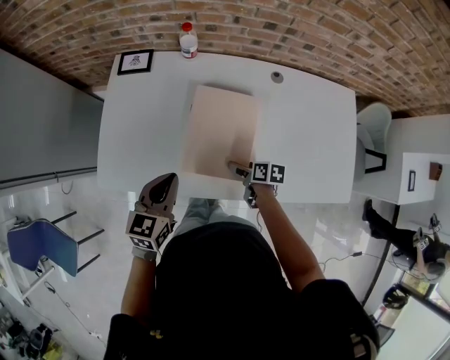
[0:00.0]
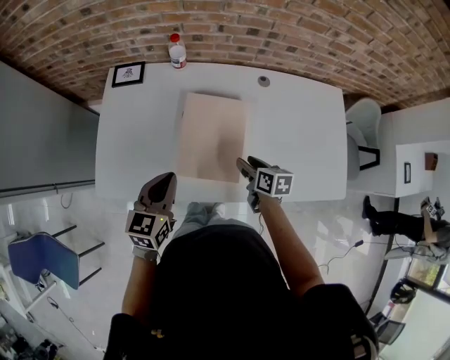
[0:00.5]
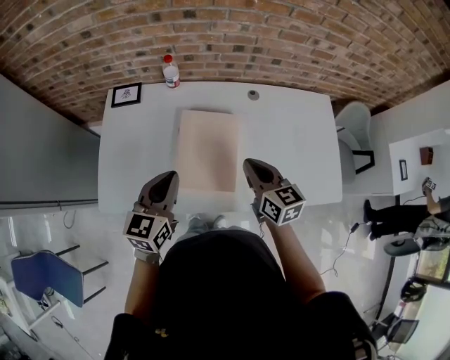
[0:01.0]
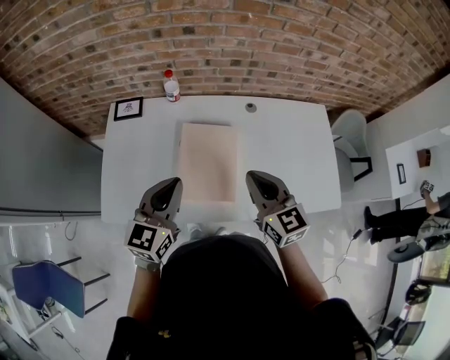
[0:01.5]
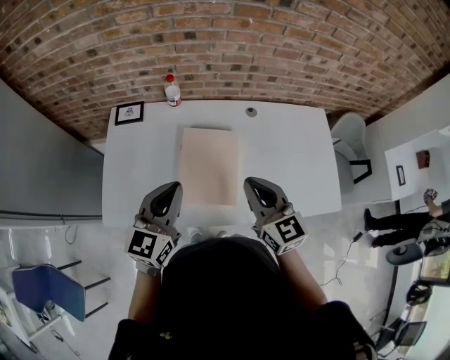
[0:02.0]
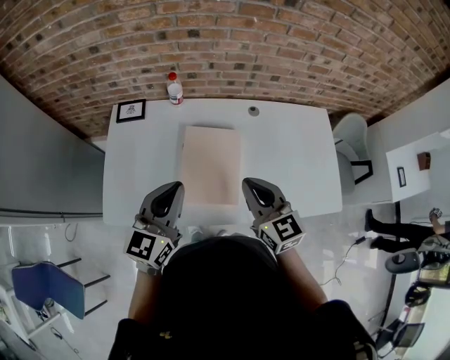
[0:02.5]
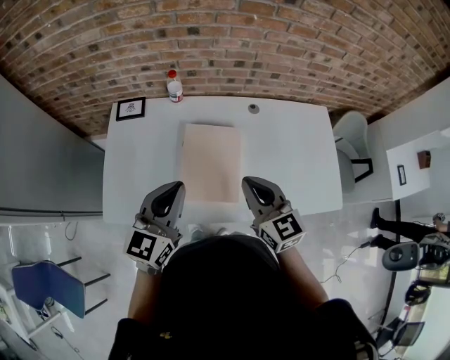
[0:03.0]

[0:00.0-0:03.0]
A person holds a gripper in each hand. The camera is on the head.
0:00.0 to 0:01.5: The right gripper heads upward, covering approximately 35 cm, tilts its fingers some 40 degrees upward, and closes up. The left gripper moves upward, roughly 15 cm.
0:01.5 to 0:03.0: The grippers move only a little.

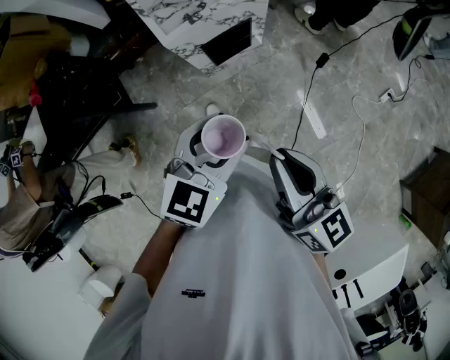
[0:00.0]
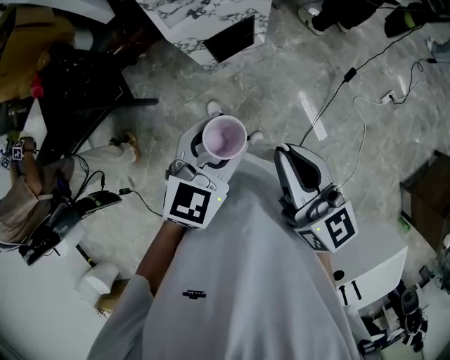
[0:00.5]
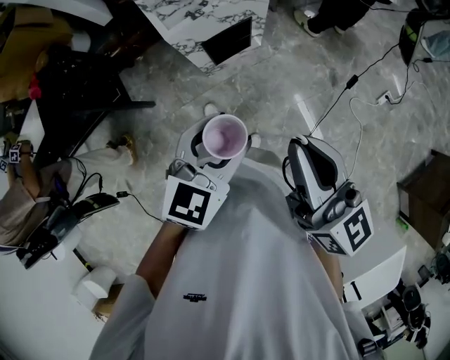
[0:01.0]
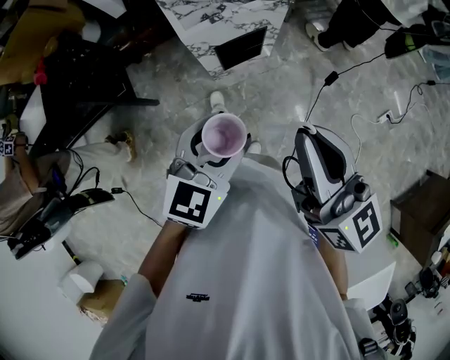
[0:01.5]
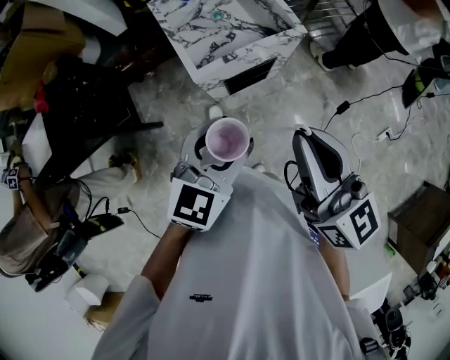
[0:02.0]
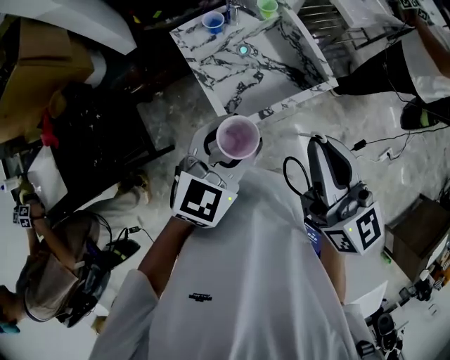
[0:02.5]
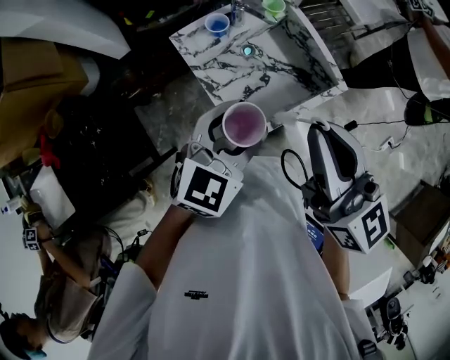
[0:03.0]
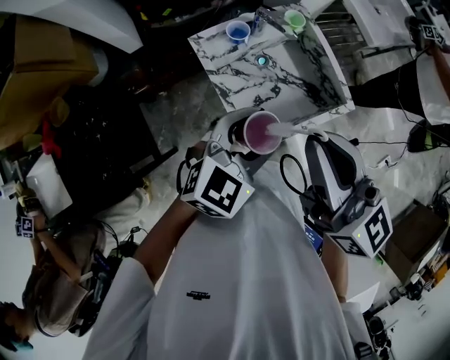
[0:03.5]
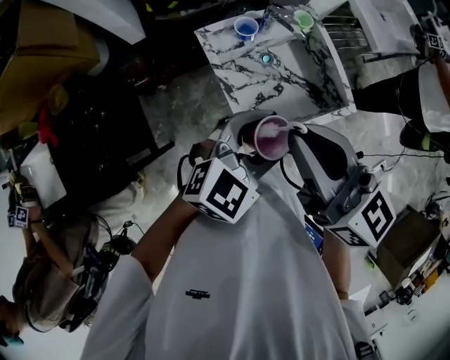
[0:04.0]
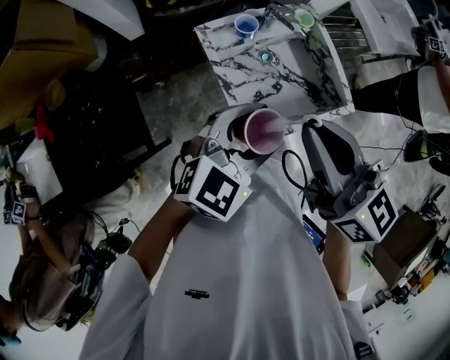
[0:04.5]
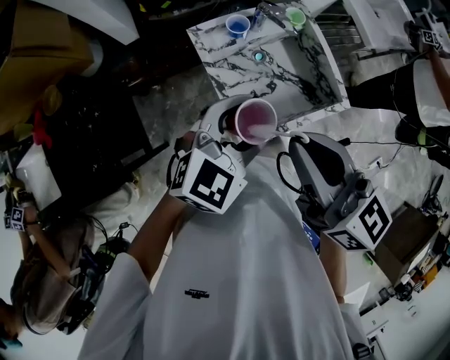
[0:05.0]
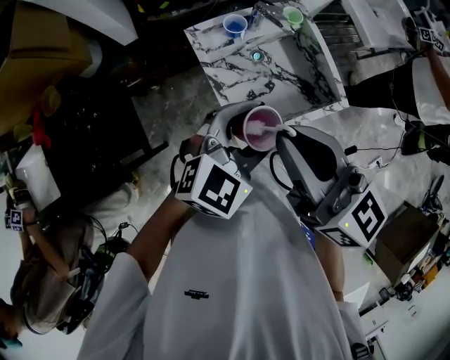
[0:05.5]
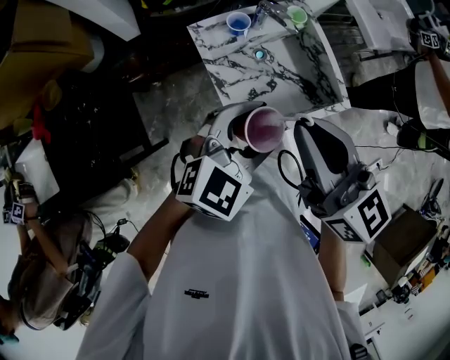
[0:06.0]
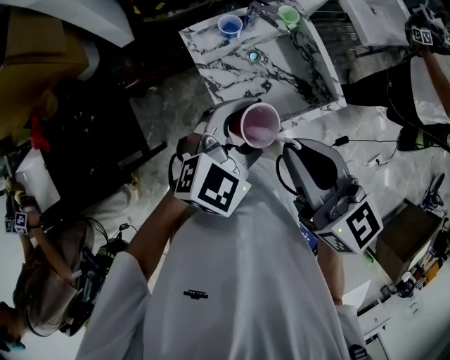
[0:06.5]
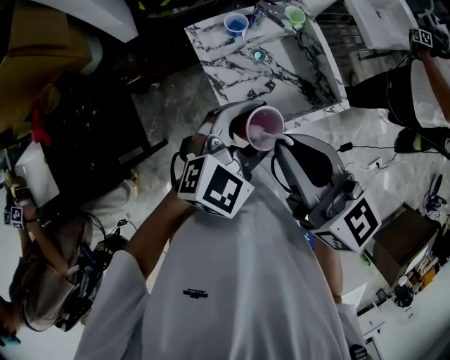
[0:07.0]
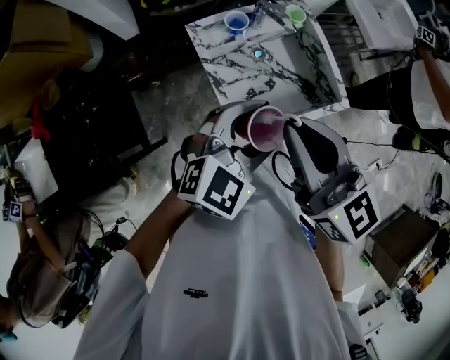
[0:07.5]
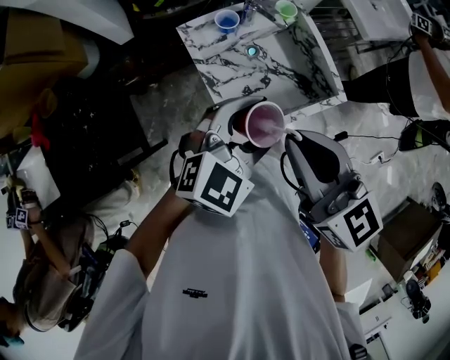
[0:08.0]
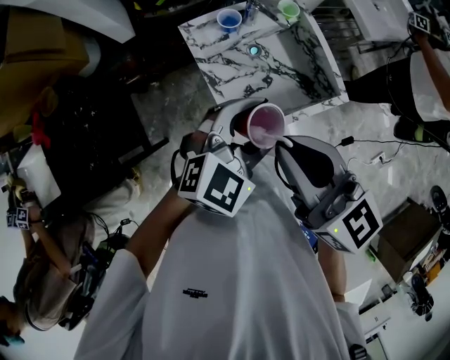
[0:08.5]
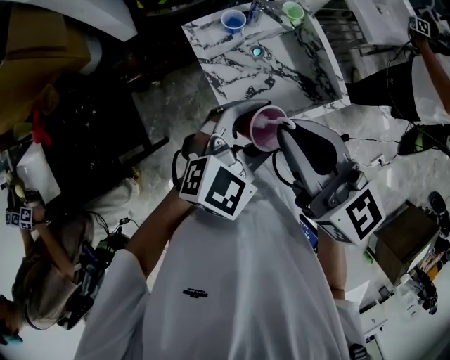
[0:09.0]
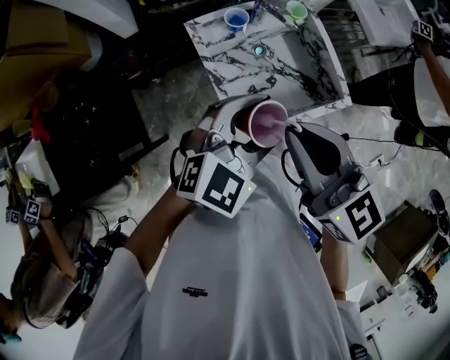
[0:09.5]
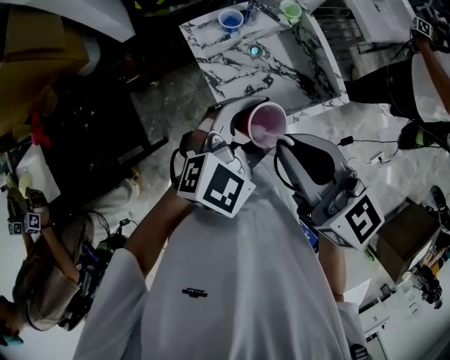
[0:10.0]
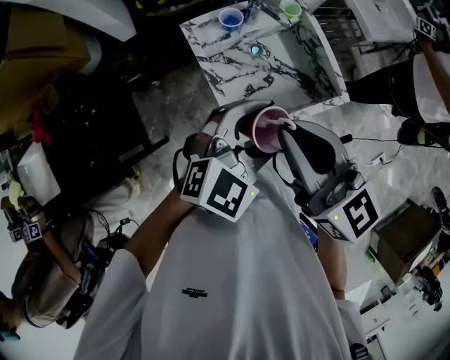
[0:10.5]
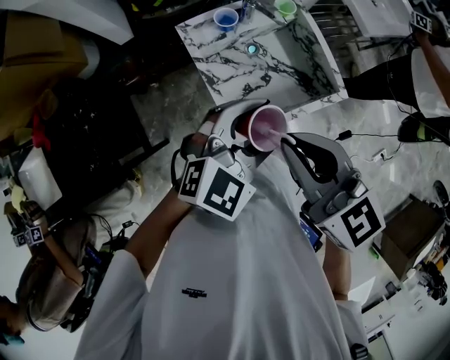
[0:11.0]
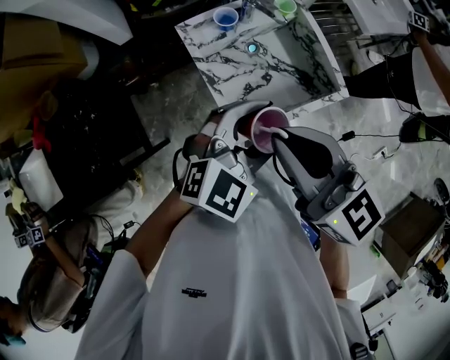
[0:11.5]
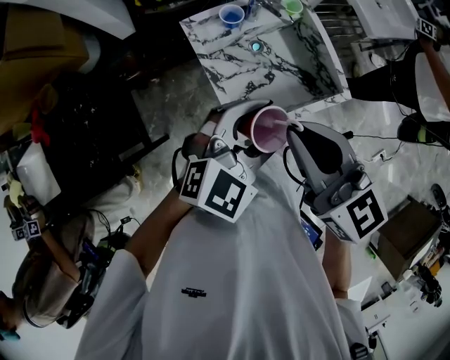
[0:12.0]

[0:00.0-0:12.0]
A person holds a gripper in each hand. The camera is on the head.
0:00.0 to 0:02.0: Both grippers travel together forward and to the left, about 20 cm.
0:02.0 to 0:04.0: The right gripper is displaced to the left and forward by some 35 cm, while the left gripper moves forward and to the left, some 30 cm.
0:04.0 to 0:06.0: The grippers make only small movements.
0:06.0 to 0:12.0: The grippers move only a little.

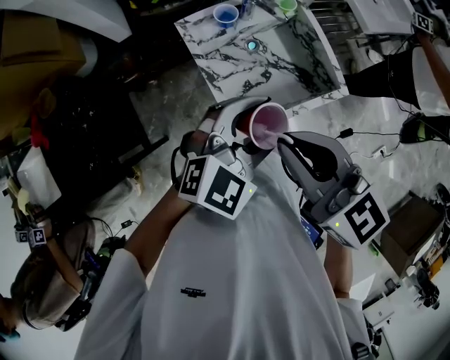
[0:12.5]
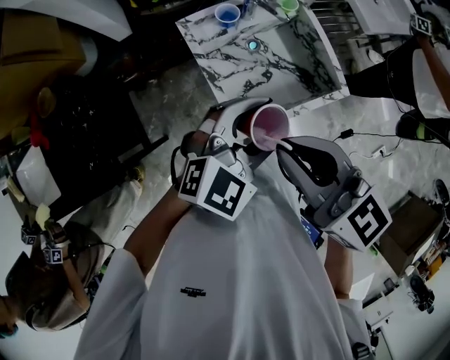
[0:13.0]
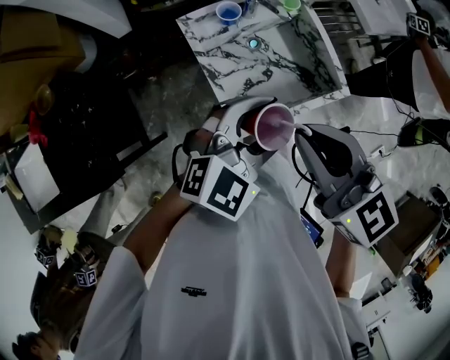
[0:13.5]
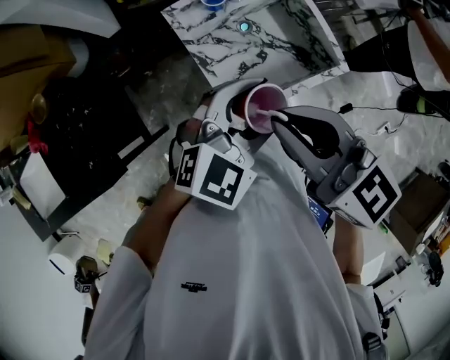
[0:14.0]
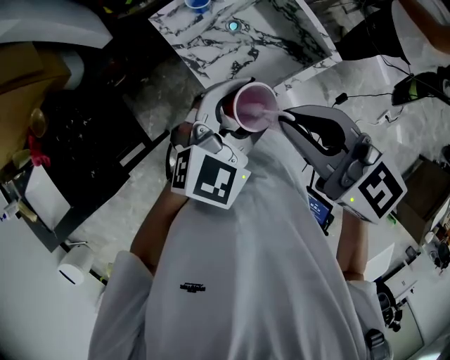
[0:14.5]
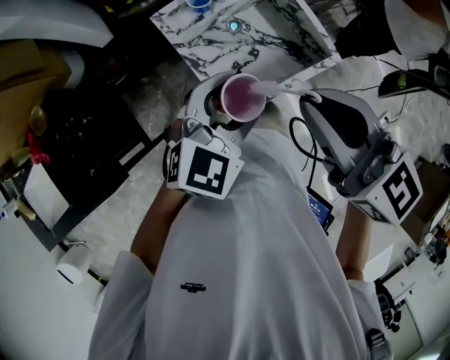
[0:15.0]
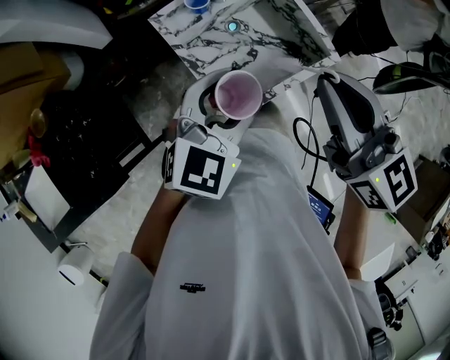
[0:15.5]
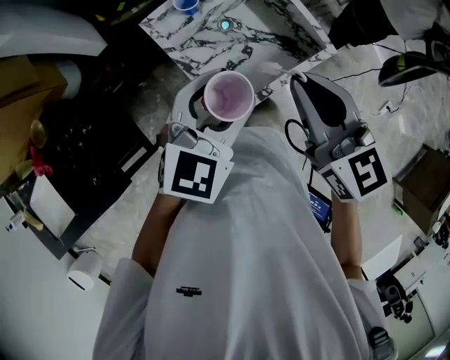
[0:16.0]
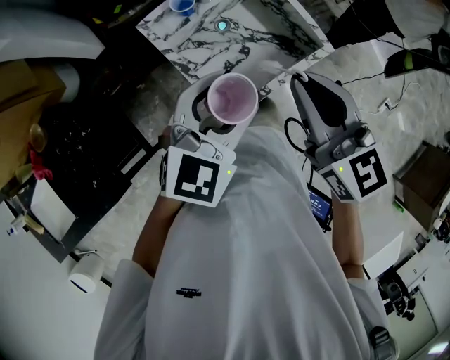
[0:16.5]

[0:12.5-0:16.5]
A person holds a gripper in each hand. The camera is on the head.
0:12.5 to 0:14.5: The grippers make only small movements.
0:14.5 to 0:16.5: The right gripper travels to the right and forward by some 10 cm, and rotates roughly 30 degrees.

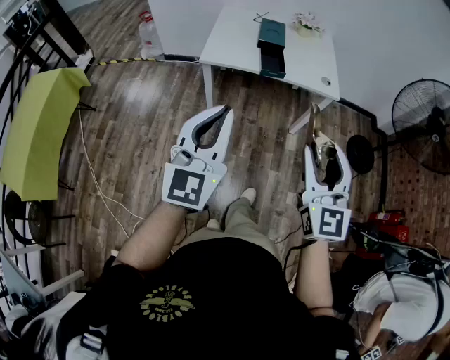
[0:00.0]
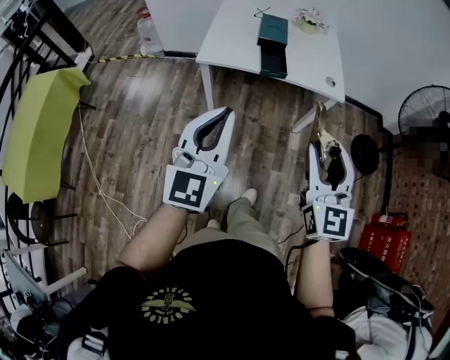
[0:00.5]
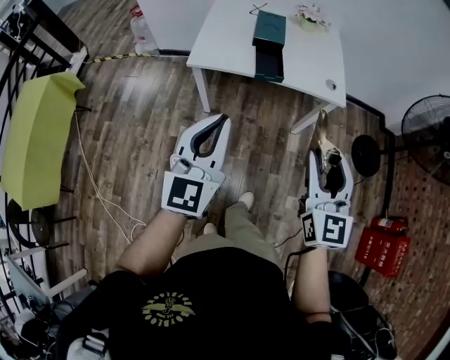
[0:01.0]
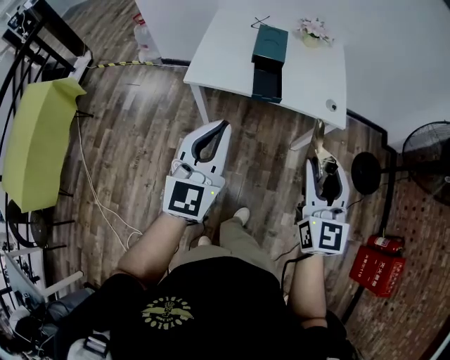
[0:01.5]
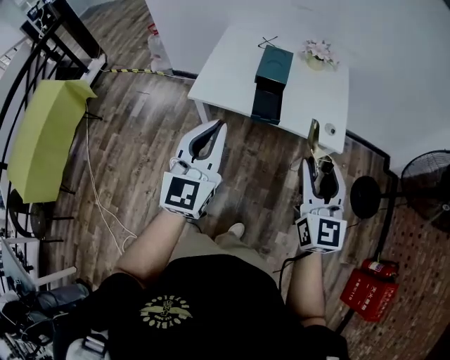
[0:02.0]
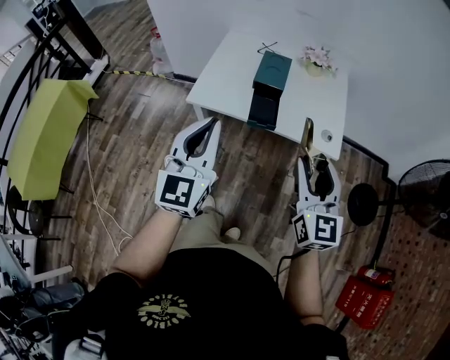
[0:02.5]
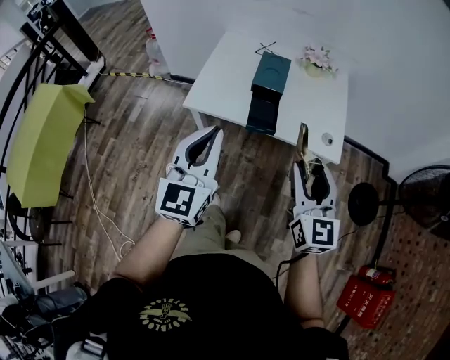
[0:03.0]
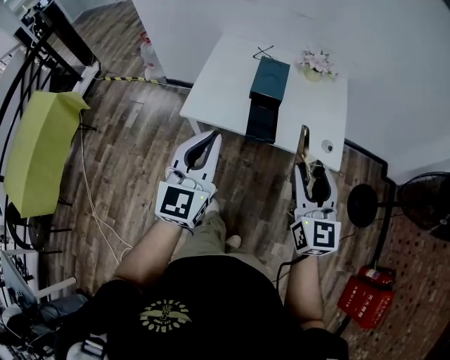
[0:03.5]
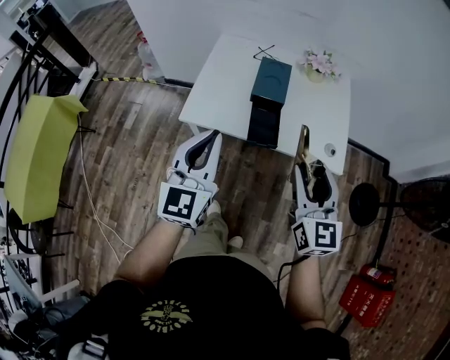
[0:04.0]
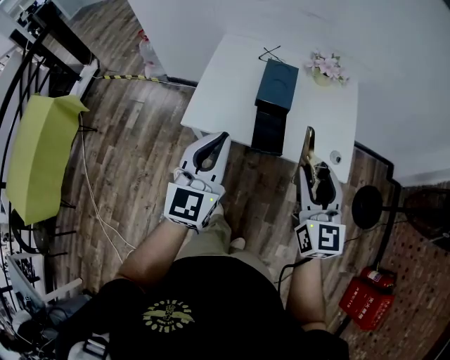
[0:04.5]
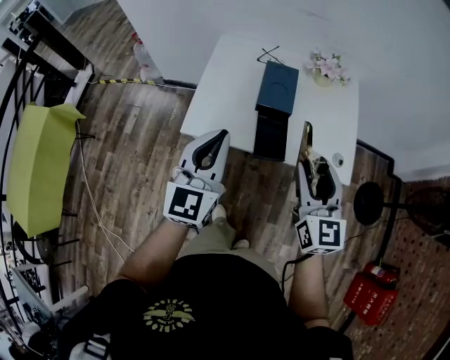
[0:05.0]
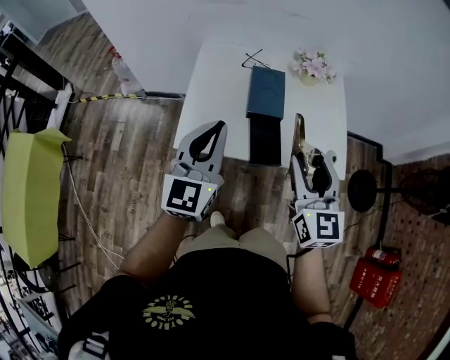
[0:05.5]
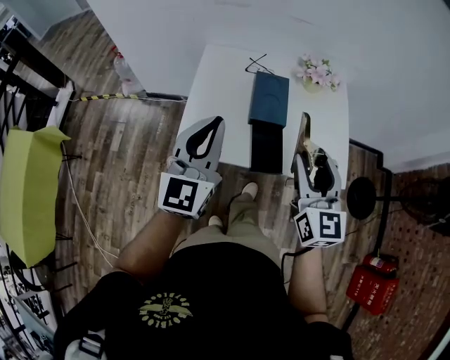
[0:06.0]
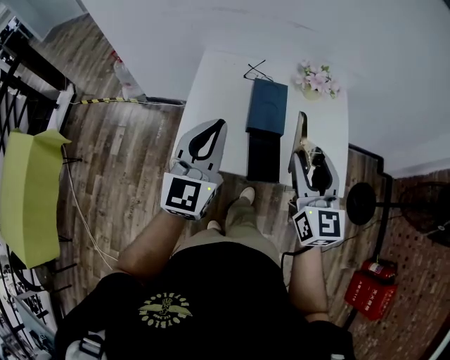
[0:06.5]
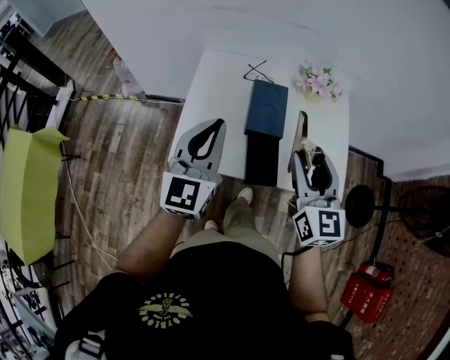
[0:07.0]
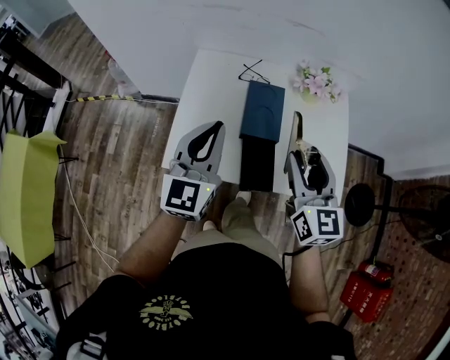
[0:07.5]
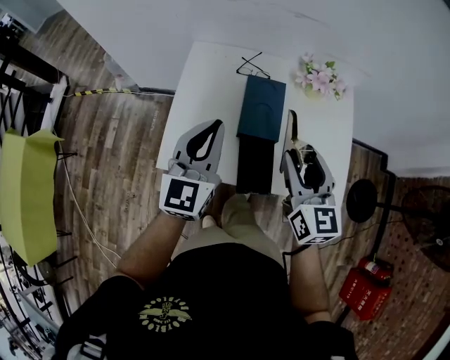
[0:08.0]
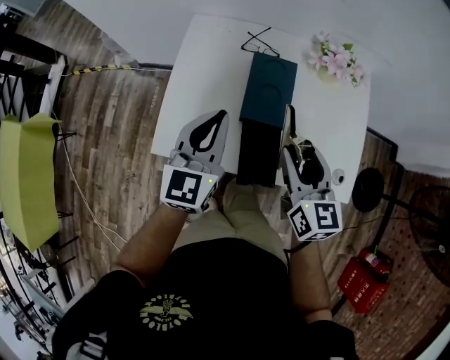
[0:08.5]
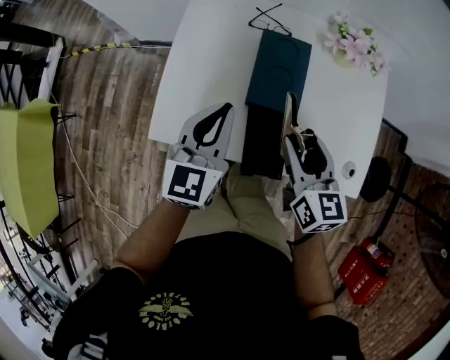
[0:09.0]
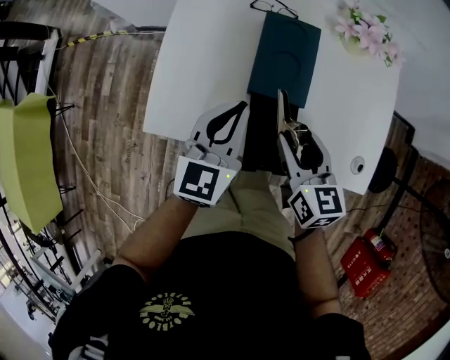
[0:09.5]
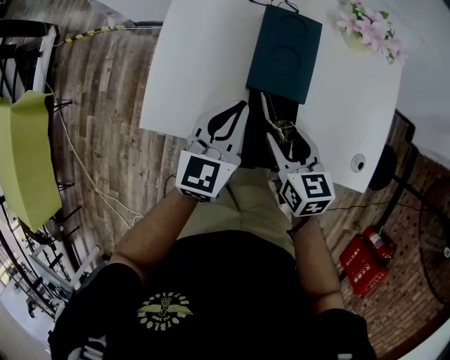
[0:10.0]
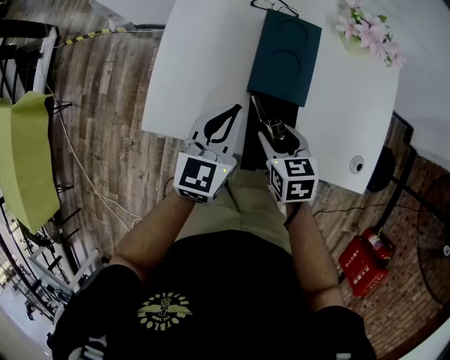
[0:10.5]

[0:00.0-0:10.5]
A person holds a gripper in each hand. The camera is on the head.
0:00.0 to 0:02.0: Both grippers move forward, approximately 25 cm.
0:02.0 to 0:04.0: The two grippers go about 10 cm forward.
0:04.0 to 0:06.5: The grippers both shift forward by roughly 20 cm.
0:06.5 to 0:08.5: The two grippers go some 15 cm downward and forward.
0:08.5 to 0:10.5: The left gripper heads downward, covering approximately 15 cm; the right gripper is displaced downward by approximately 20 cm, and tilts its fingers roughly 30 degrees downward.
